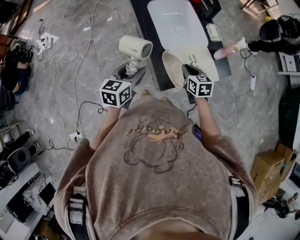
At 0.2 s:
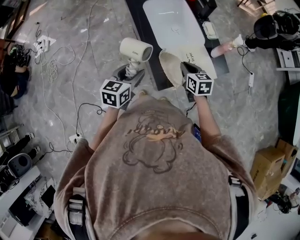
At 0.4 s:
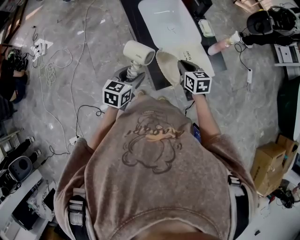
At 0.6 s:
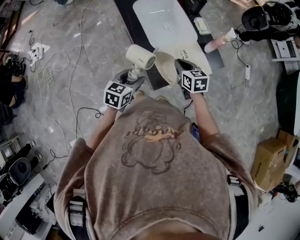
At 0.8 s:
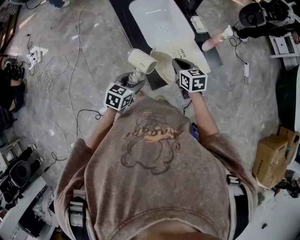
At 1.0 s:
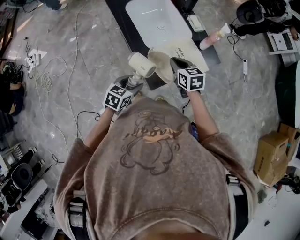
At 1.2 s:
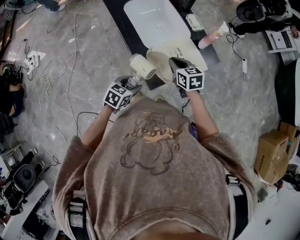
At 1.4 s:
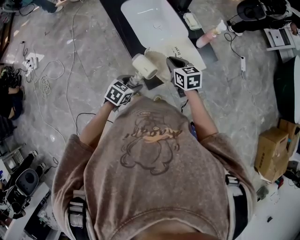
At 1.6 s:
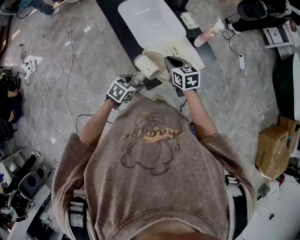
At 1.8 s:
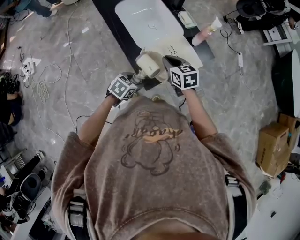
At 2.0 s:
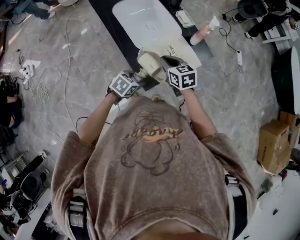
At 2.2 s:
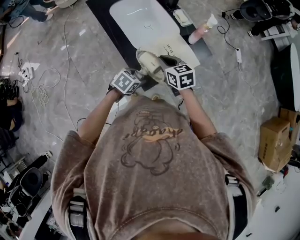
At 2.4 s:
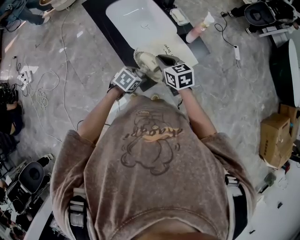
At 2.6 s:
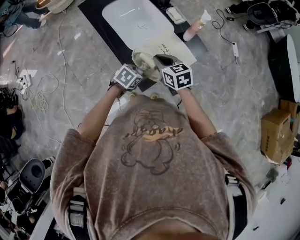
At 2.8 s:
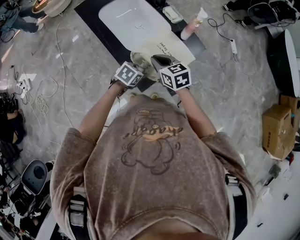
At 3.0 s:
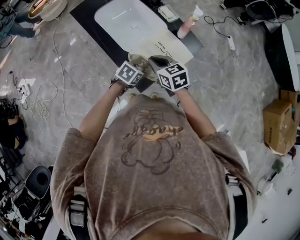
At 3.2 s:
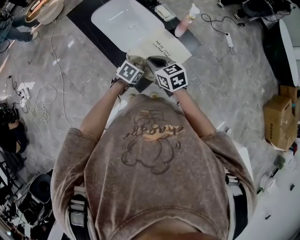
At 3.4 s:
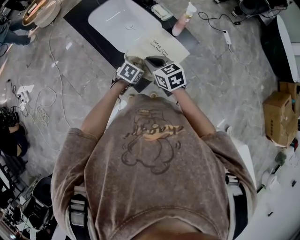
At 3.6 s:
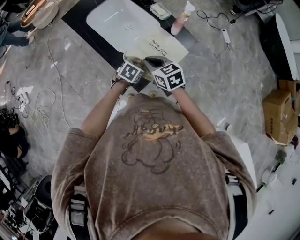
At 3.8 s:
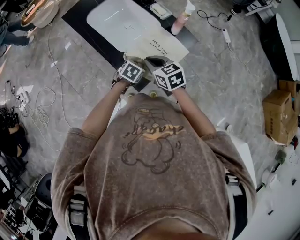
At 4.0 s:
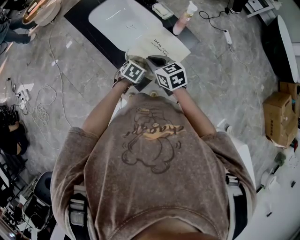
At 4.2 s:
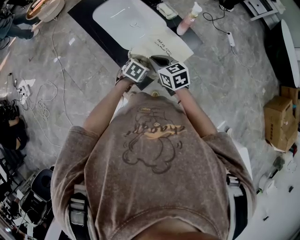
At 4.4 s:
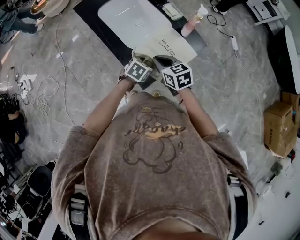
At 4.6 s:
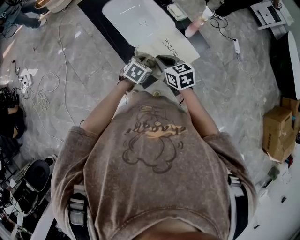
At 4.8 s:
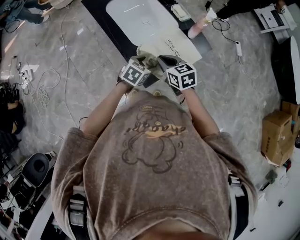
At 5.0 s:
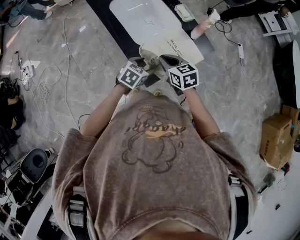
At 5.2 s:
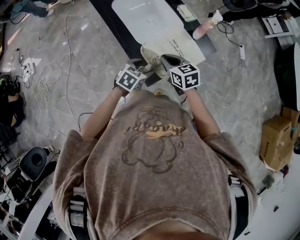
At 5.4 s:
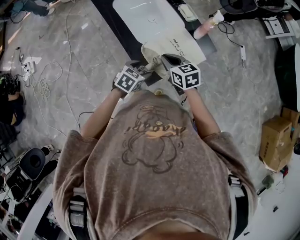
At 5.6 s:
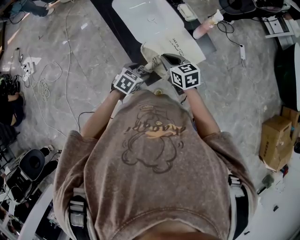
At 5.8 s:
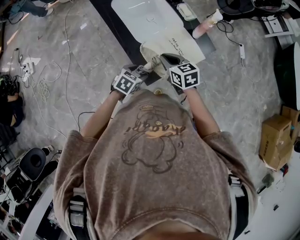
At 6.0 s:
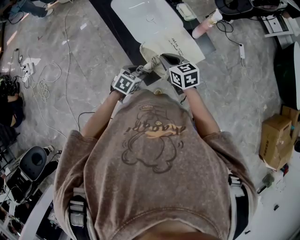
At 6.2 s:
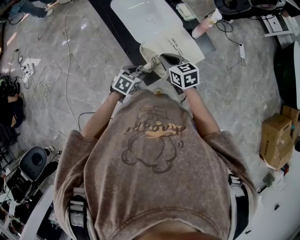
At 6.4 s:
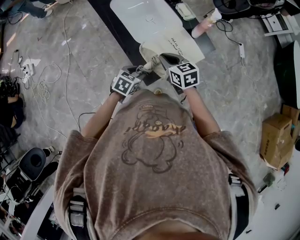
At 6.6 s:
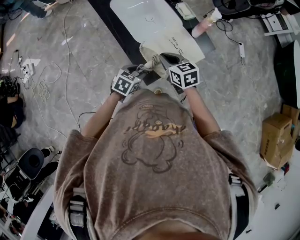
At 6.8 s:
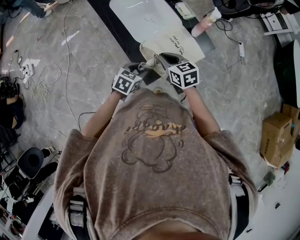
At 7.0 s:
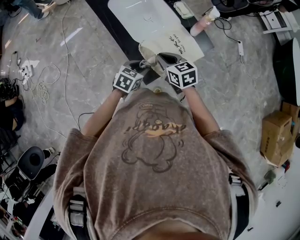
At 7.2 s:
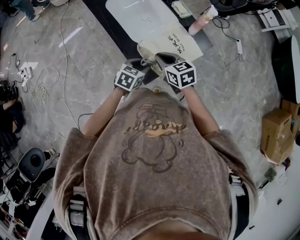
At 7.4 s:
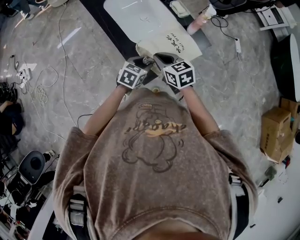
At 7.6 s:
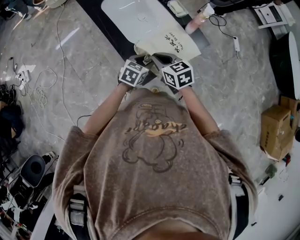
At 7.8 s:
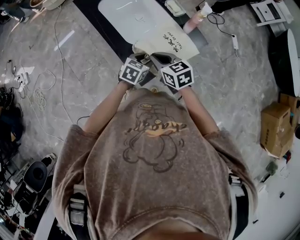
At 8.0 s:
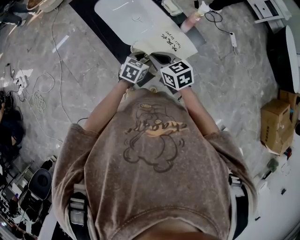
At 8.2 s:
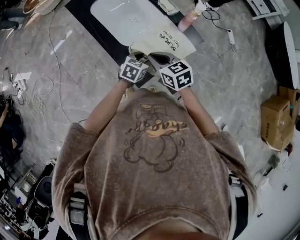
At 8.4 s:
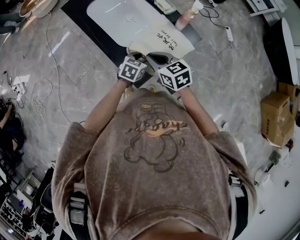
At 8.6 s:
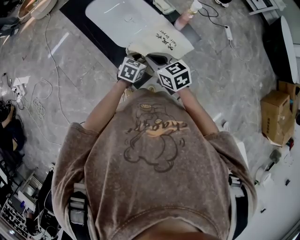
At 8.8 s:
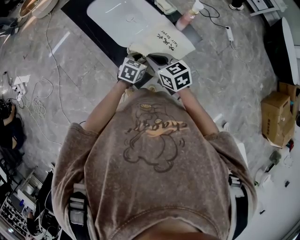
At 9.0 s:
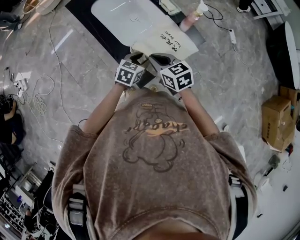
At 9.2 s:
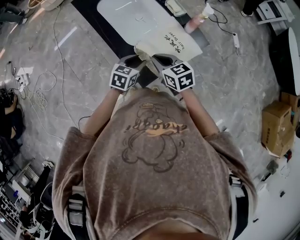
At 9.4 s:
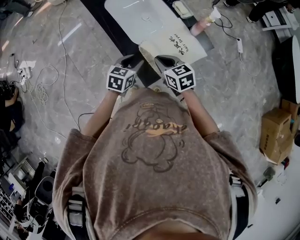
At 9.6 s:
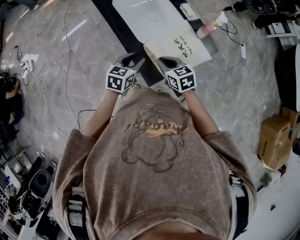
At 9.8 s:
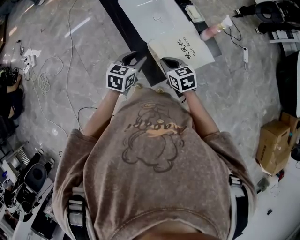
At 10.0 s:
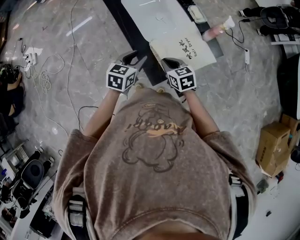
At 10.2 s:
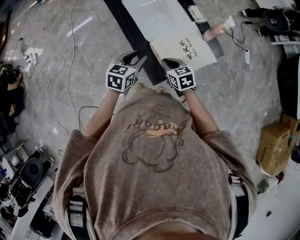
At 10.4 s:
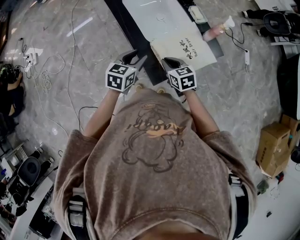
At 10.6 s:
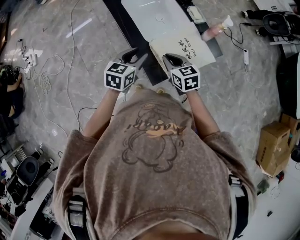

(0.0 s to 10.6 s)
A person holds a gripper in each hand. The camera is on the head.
0.0 s - 1.6 s: The left gripper goes approximately 15 cm downward and to the right, and turns by about 40 degrees.
1.6 s - 3.0 s: The left gripper travels forward by some 10 cm.
3.0 s - 4.6 s: The grippers make only small movements.
4.6 s - 6.0 s: The left gripper is displaced backward and to the left by approximately 10 cm.
6.0 s - 7.6 s: The left gripper is displaced to the right and forward by roughly 10 cm.
7.6 s - 9.0 s: There are only small adjustments of the grippers.
9.0 s - 10.6 s: The left gripper travels to the left and upward by roughly 15 cm, and swivels about 20 degrees.

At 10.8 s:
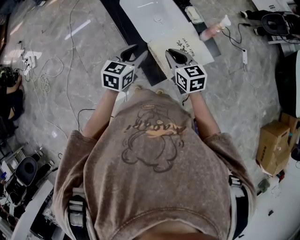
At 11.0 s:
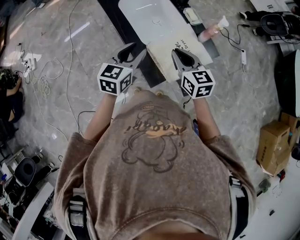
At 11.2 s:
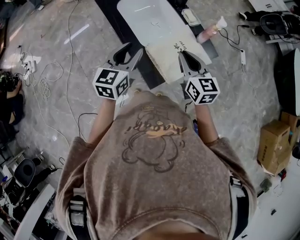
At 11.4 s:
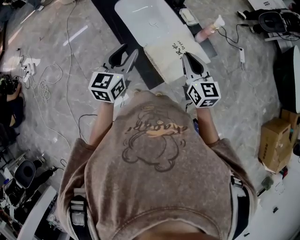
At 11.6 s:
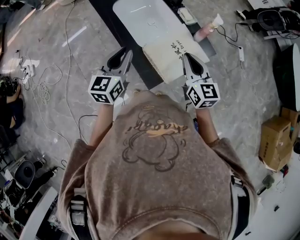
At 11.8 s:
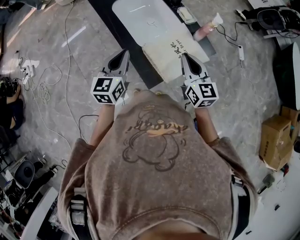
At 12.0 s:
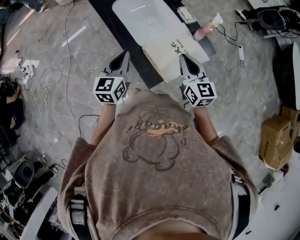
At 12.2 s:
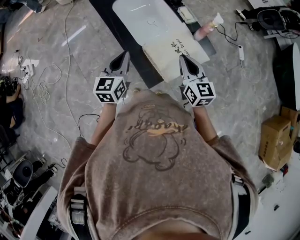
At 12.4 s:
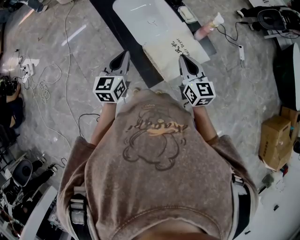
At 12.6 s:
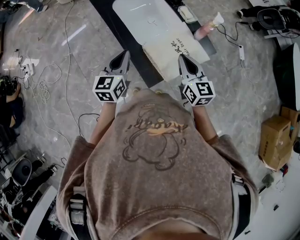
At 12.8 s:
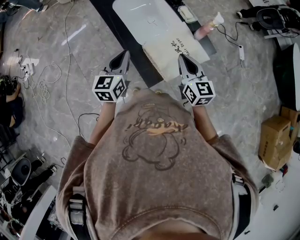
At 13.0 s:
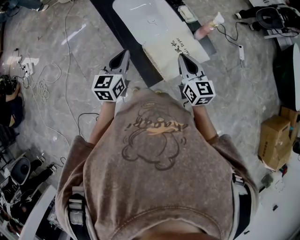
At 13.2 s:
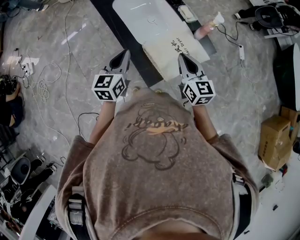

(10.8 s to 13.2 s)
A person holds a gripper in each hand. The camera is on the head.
10.8 s - 12.0 s: The left gripper closes. The right gripper shifts roughly 5 cm to the right.
12.0 s - 13.2 s: Both grippers stay put.

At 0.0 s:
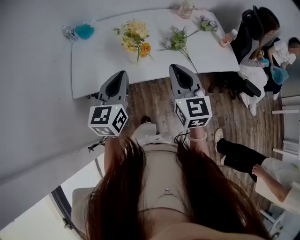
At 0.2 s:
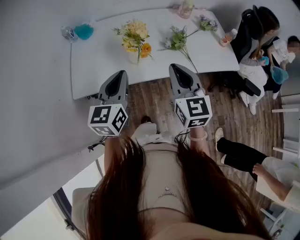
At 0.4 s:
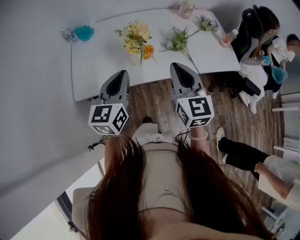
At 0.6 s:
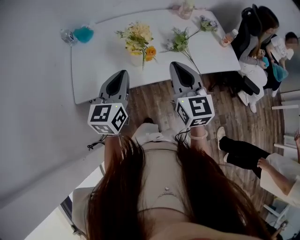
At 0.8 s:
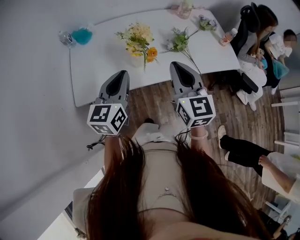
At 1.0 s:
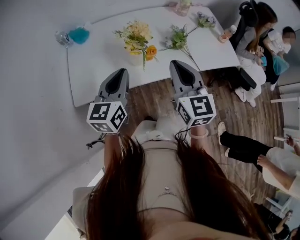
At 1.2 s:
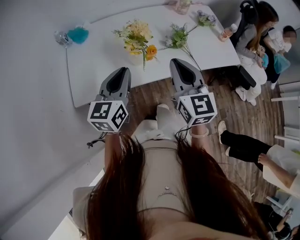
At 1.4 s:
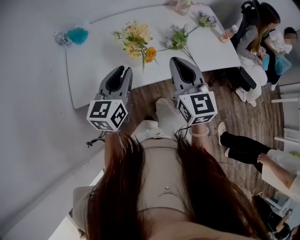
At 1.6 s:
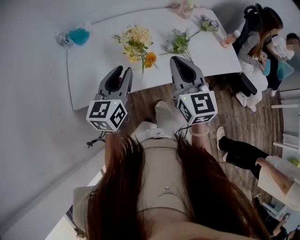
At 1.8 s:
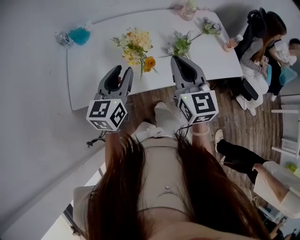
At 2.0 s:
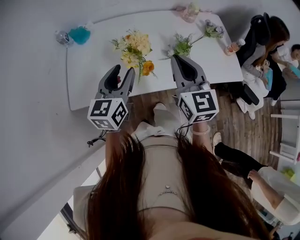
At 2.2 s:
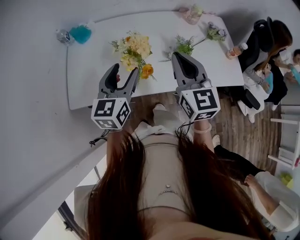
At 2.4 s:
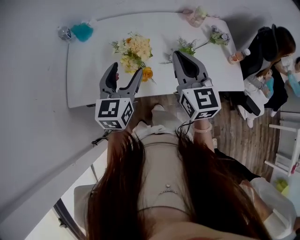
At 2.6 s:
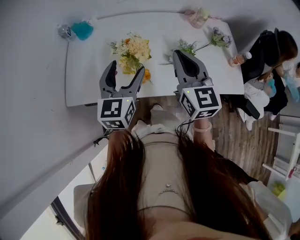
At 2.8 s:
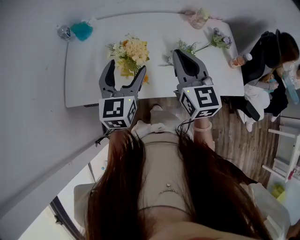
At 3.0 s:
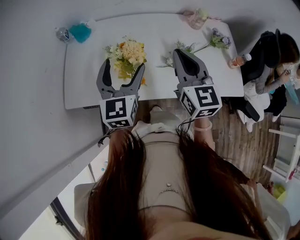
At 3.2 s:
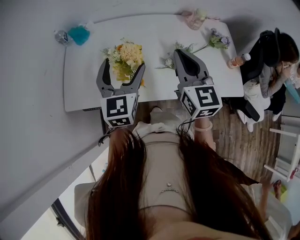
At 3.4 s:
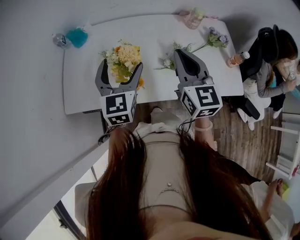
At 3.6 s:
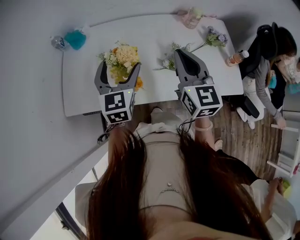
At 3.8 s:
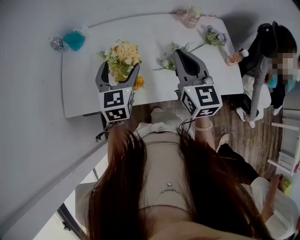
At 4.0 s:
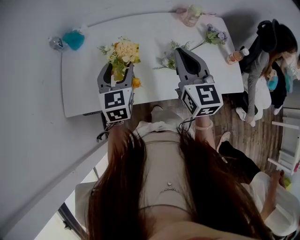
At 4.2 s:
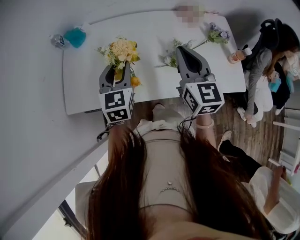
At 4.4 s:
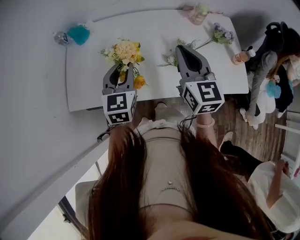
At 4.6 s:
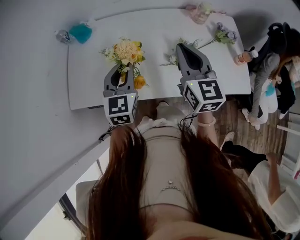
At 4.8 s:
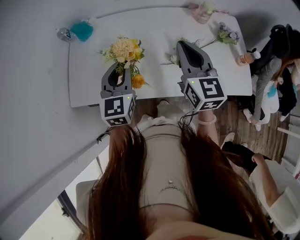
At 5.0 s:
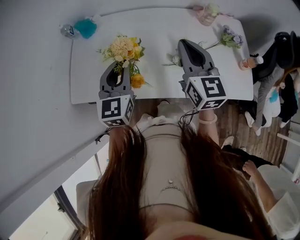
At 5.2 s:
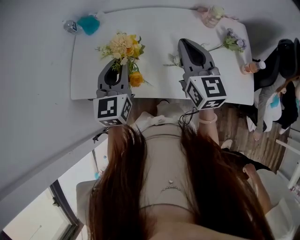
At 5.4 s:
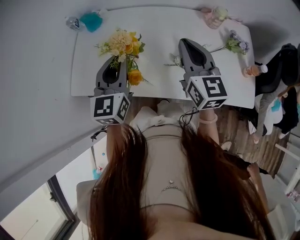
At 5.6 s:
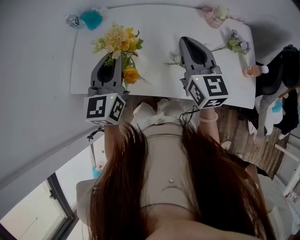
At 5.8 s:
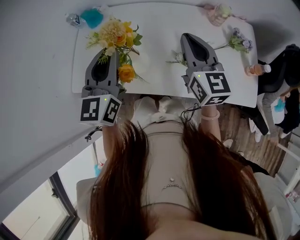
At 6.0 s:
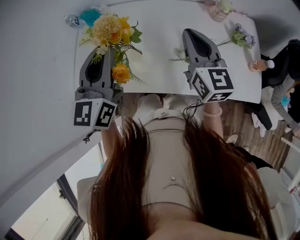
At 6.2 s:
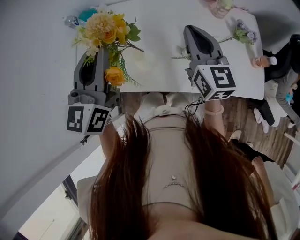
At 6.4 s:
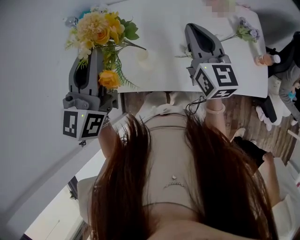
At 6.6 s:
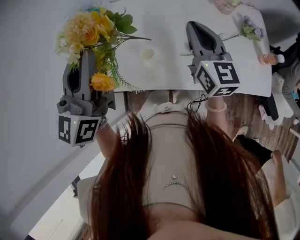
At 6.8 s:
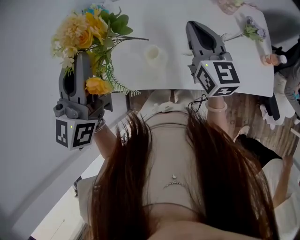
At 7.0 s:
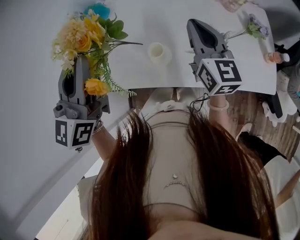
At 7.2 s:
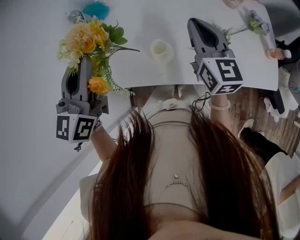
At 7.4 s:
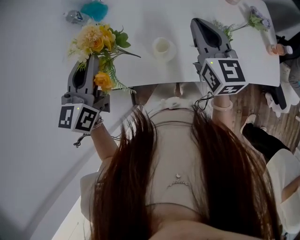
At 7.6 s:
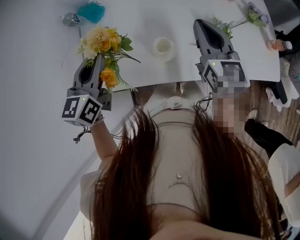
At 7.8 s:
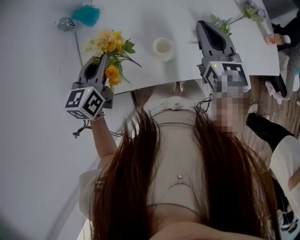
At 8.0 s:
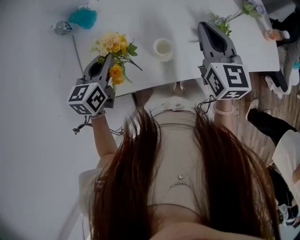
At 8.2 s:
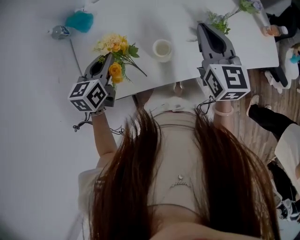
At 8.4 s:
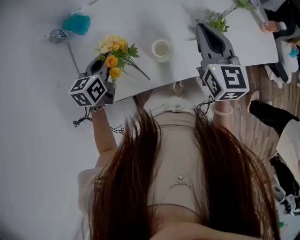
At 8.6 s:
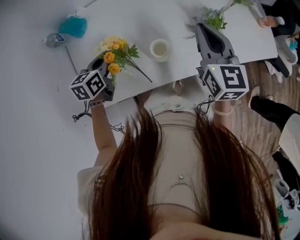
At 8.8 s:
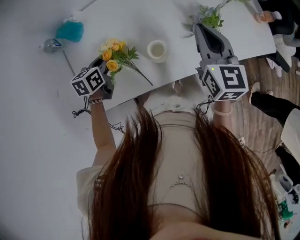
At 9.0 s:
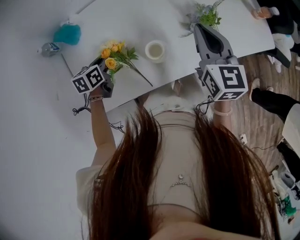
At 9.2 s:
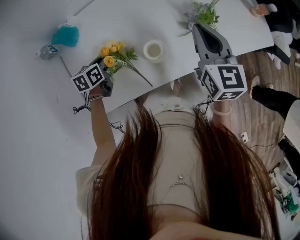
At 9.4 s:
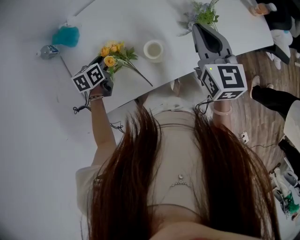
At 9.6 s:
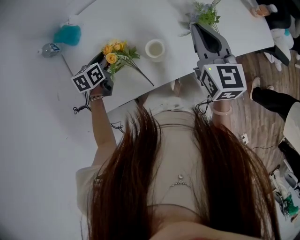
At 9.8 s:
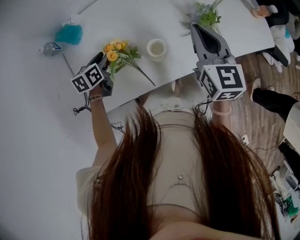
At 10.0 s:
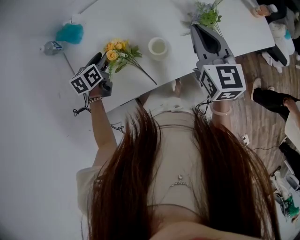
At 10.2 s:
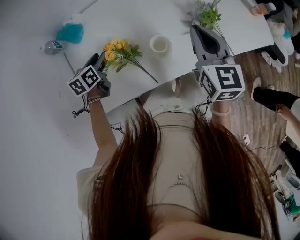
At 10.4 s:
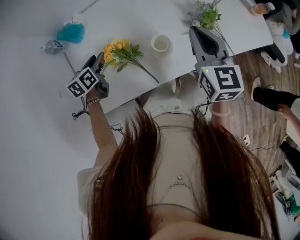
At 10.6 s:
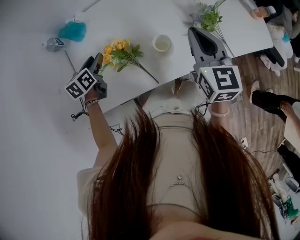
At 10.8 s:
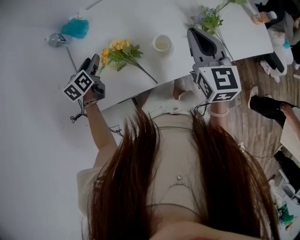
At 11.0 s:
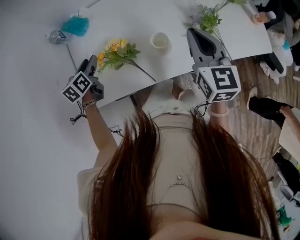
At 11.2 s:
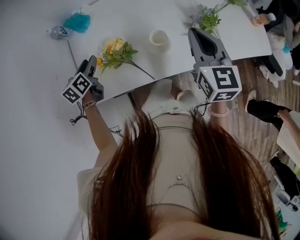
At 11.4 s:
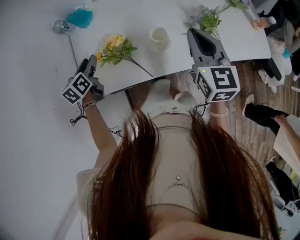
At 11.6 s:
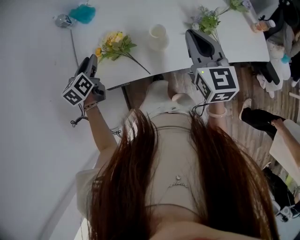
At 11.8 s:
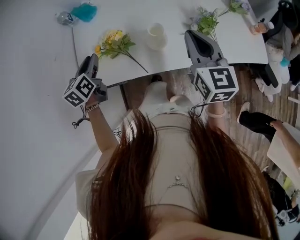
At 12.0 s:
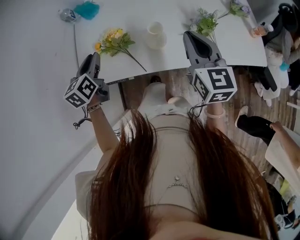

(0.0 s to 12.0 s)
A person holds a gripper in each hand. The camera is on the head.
0.0 s - 1.6 s: The grippers both shift forward by about 5 cm.
1.6 s - 3.0 s: Both grippers move forward and to the right, some 10 cm. The left gripper rotates some 20 degrees, and opens up.
3.0 s - 4.4 s: The left gripper moves approximately 5 cm, and closes.
4.4 s - 6.0 s: The left gripper goes some 15 cm upward, and turns by some 20 degrees; the right gripper heads forward, covering some 5 cm.
6.0 s - 7.6 s: The left gripper travels to the left and downward by approximately 10 cm, and rotates some 20 degrees.
7.6 s - 9.0 s: The left gripper moves downward, approximately 25 cm, and changes its angle by about 30 degrees.
9.0 s - 10.4 s: The left gripper is displaced to the left by about 5 cm, and opens.
10.4 s - 12.0 s: The left gripper travels backward and upward by roughly 20 cm, and changes its angle by roughly 30 degrees. The right gripper travels backward by some 5 cm.
